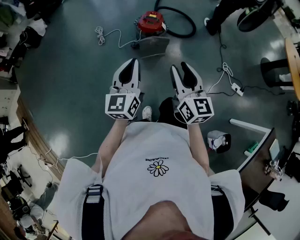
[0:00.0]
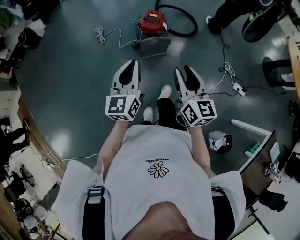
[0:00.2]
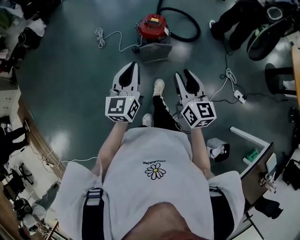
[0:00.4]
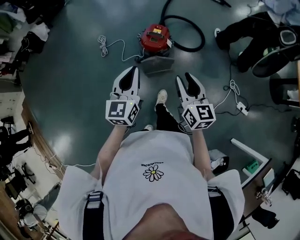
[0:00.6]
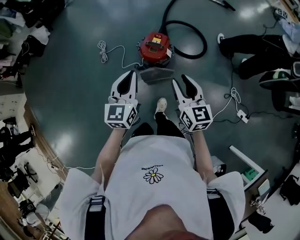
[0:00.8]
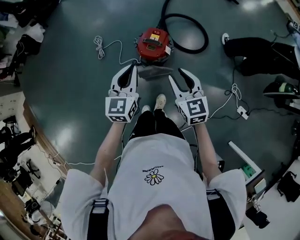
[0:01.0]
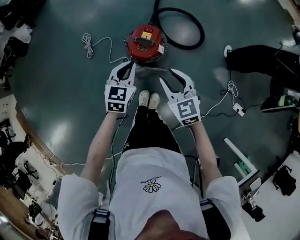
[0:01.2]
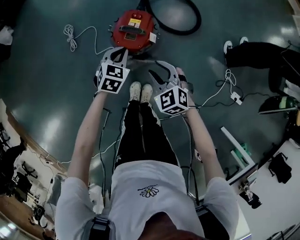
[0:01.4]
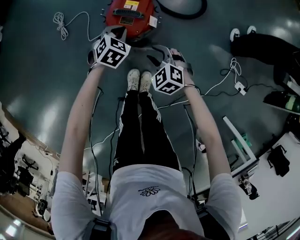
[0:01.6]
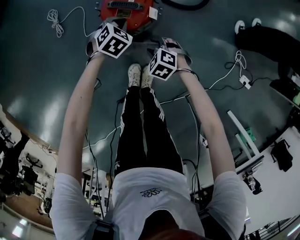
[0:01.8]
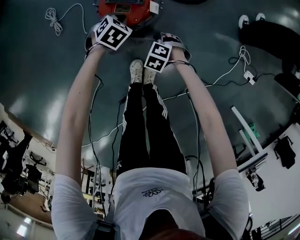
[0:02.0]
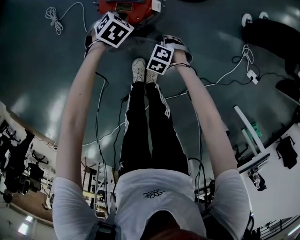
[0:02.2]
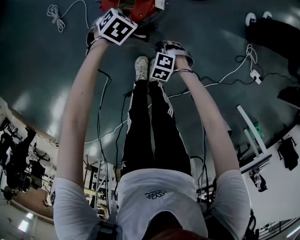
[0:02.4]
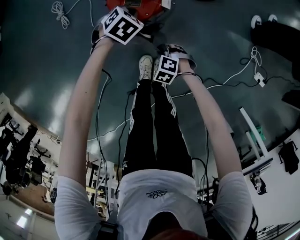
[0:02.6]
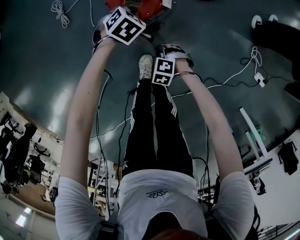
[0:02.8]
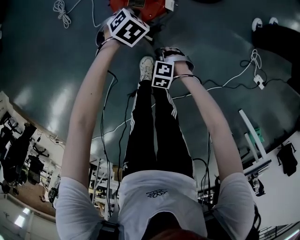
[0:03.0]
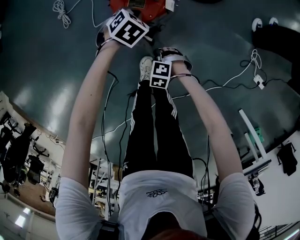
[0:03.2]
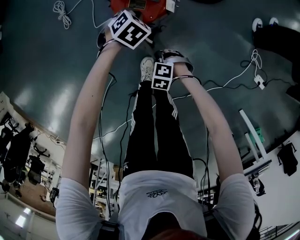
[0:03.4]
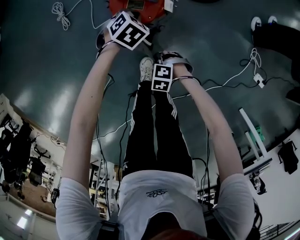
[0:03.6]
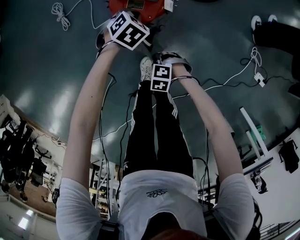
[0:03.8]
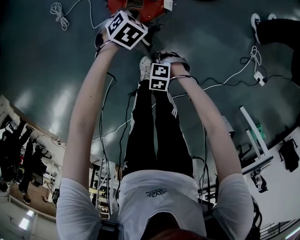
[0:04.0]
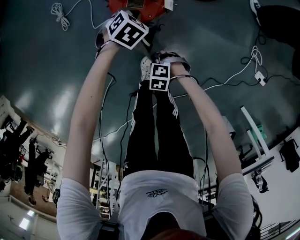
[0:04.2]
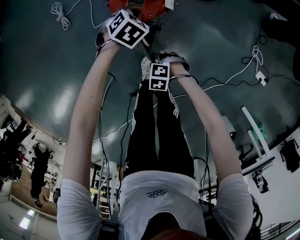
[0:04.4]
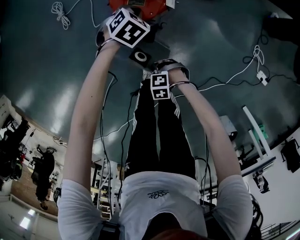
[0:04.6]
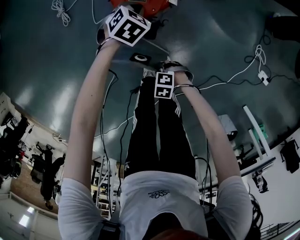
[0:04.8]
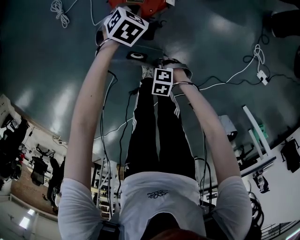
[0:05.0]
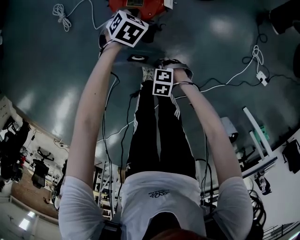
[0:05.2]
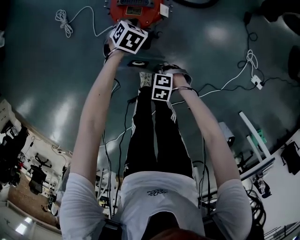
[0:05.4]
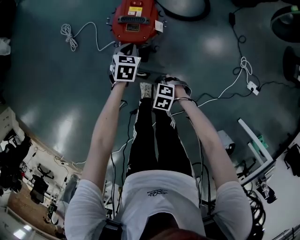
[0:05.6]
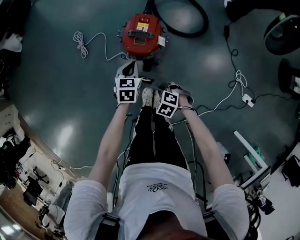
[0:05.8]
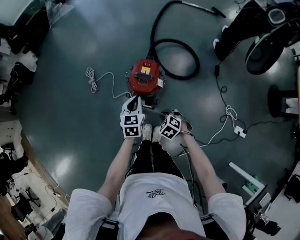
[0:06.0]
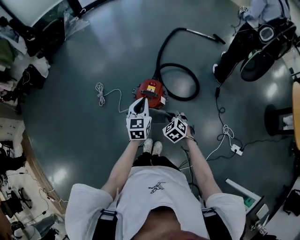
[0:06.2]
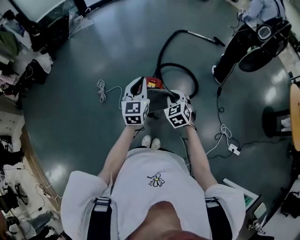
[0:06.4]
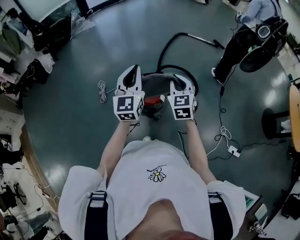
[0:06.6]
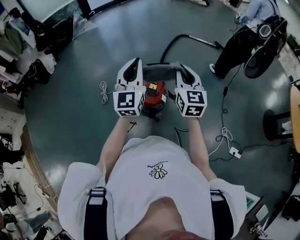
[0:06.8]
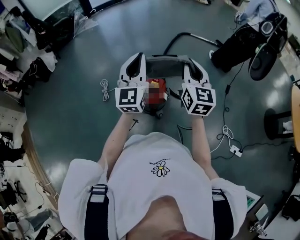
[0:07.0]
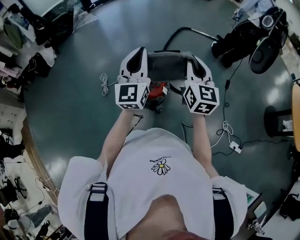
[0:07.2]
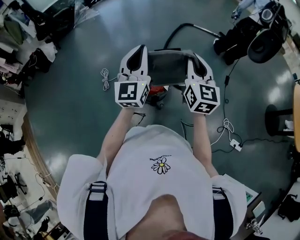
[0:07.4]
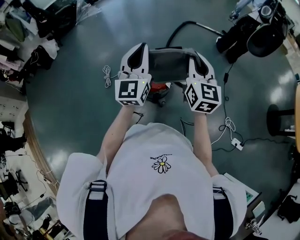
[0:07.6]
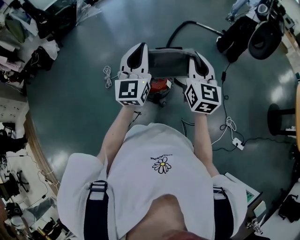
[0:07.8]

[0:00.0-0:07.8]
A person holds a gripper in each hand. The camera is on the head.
0:00.0 to 0:01.6: The two grippers travel together, forward, about 50 cm. Both grippers move downward, about 50 cm. The left gripper angles its fingers downward, by approximately 50 degrees. Meanwhile the right gripper points its fingers approximately 50 degrees further downward.
0:01.6 to 0:03.2: The right gripper travels downward by roughly 15 cm, rotates about 30 degrees, and closes its fingers; the left gripper moves downward, approximately 10 cm.
0:03.2 to 0:04.6: The right gripper changes place by some 10 cm.
0:04.6 to 0:06.2: The two grippers go roughly 40 cm upward. The right gripper swivels some 50 degrees. Meanwhile the left gripper tips its fingers upward by about 50 degrees.
0:06.2 to 0:07.8: Both grippers move upward, about 30 cm. The right gripper tilts its fingers about 50 degrees upward. Meanwhile the left gripper points its fingers approximately 30 degrees further upward.

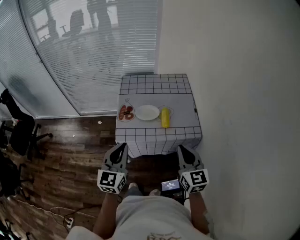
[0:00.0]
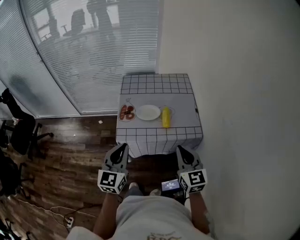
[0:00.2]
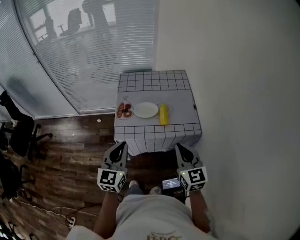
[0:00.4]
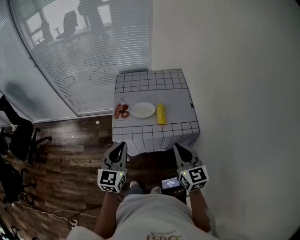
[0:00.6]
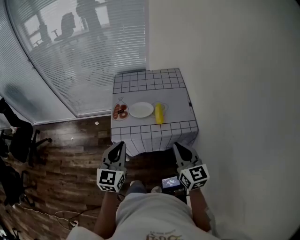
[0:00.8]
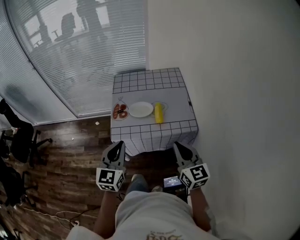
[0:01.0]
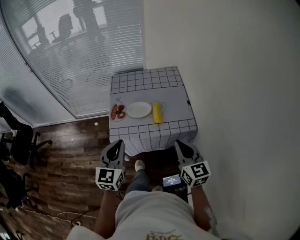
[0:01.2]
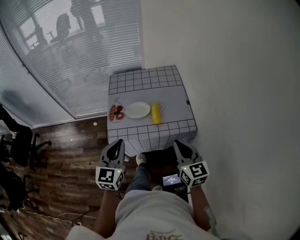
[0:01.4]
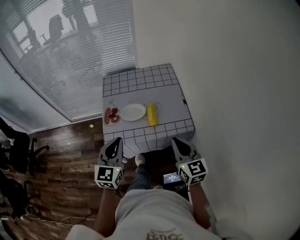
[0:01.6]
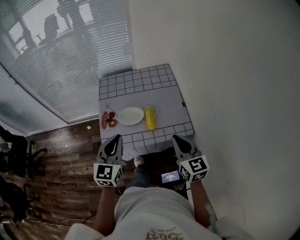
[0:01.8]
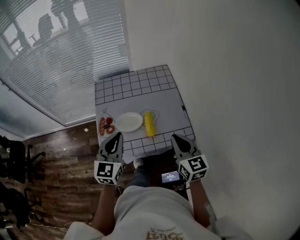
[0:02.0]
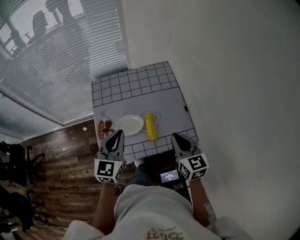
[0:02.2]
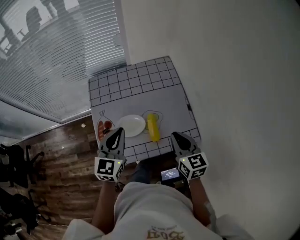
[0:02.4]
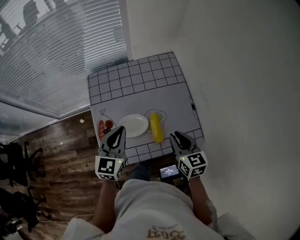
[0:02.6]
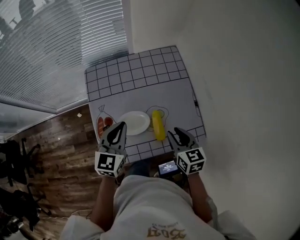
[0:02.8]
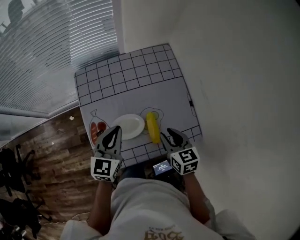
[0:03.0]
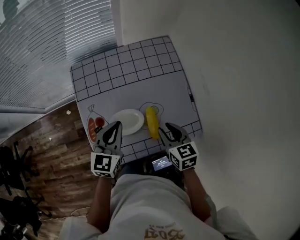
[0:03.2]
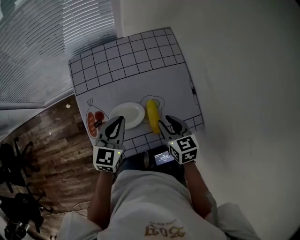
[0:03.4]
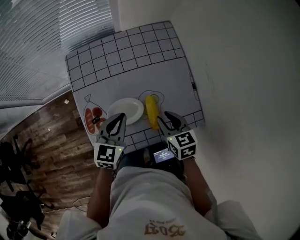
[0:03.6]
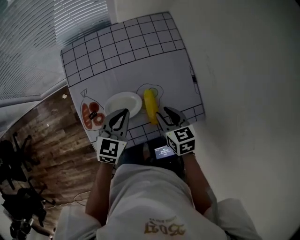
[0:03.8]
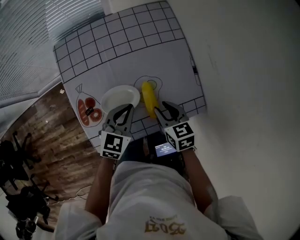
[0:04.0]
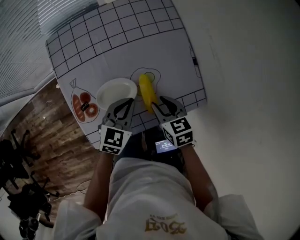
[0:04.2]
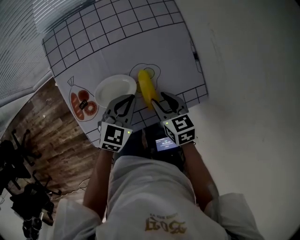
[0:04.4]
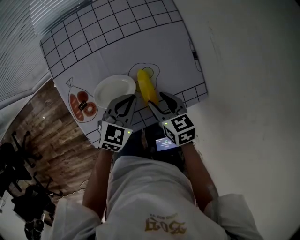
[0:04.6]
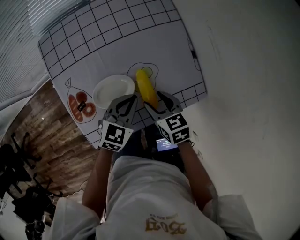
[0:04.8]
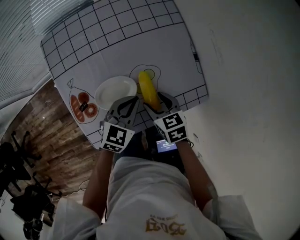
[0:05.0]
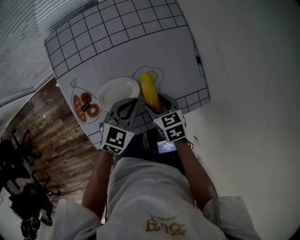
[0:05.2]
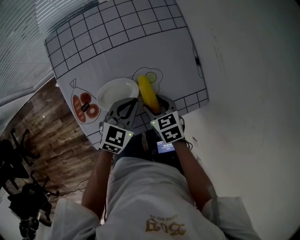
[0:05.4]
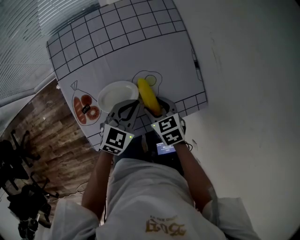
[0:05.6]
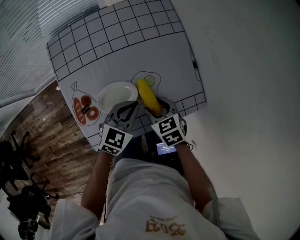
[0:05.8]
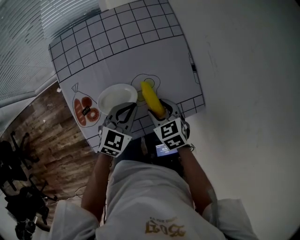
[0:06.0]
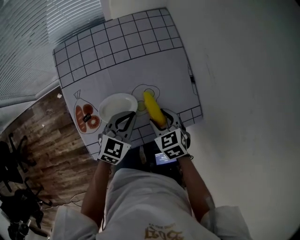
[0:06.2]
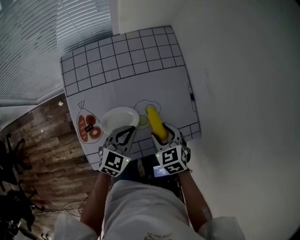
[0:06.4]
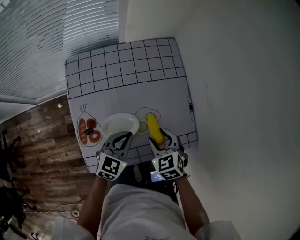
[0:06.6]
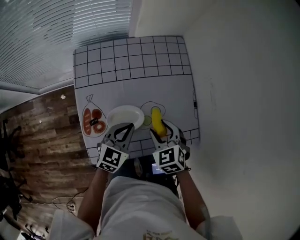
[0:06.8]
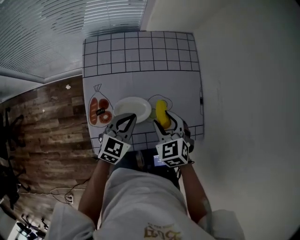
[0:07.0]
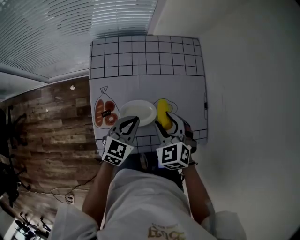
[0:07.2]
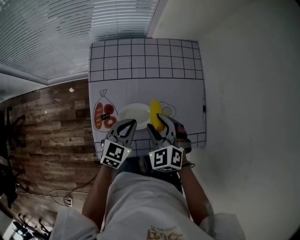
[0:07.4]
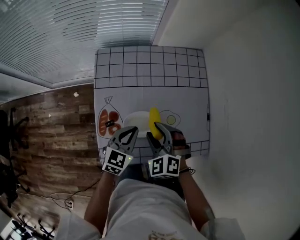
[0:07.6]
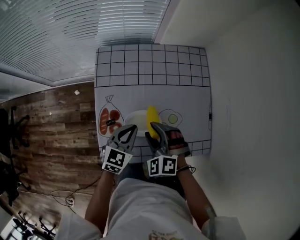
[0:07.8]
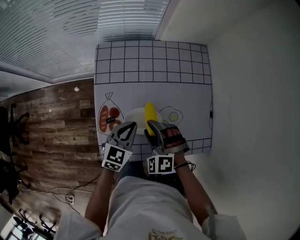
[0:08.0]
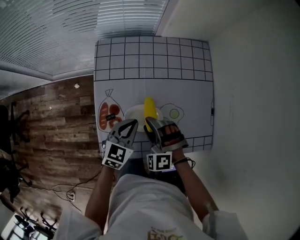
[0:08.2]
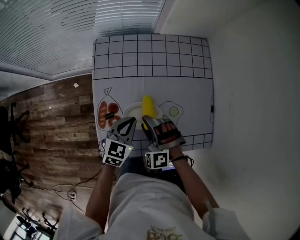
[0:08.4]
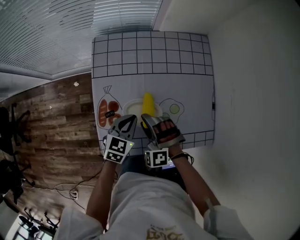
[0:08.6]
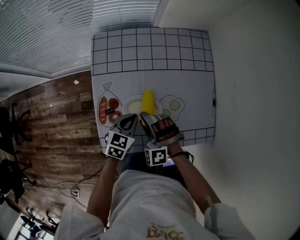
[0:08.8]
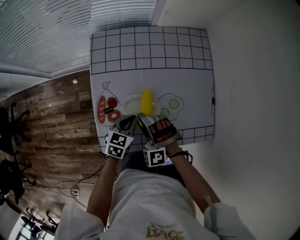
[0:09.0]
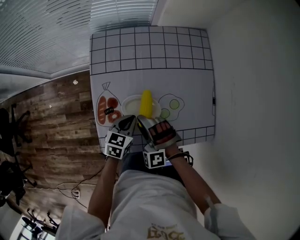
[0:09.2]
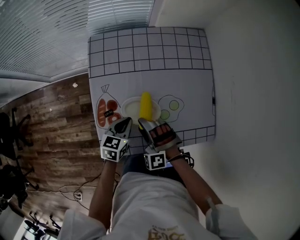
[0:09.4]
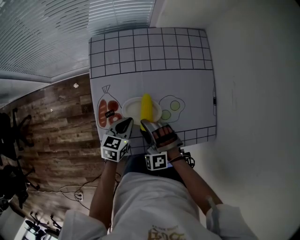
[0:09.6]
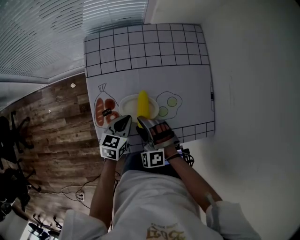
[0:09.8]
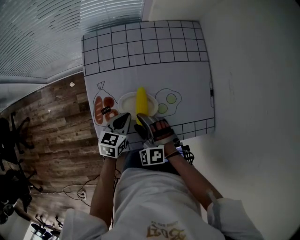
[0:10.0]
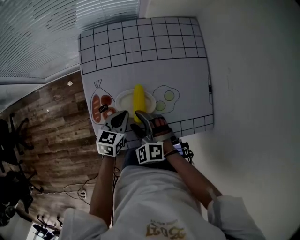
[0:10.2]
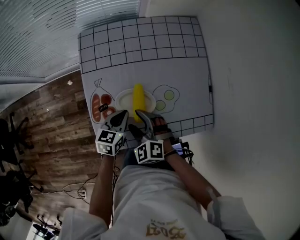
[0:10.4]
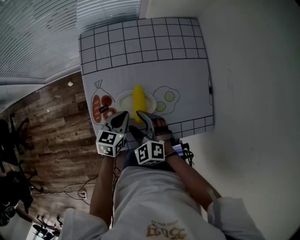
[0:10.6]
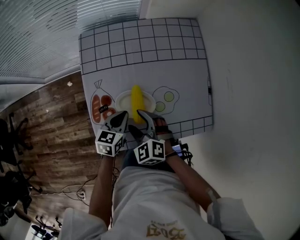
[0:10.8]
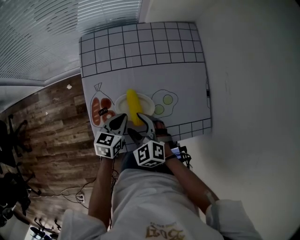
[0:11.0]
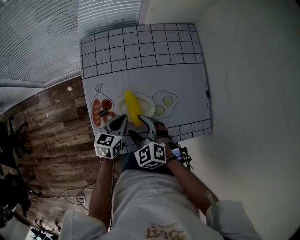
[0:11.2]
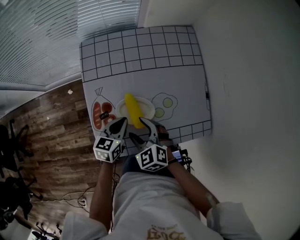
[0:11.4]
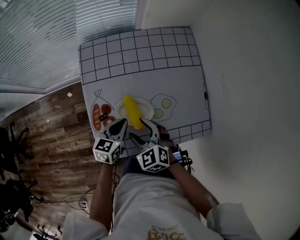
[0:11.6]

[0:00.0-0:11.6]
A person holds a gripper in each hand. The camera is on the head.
0:00.0 to 0:01.4: The left gripper ends up some 5 cm from where it was.
0:01.4 to 0:02.8: The left gripper moves forward, approximately 30 cm; the right gripper goes approximately 25 cm forward and downward, turns by about 20 degrees, and opens its fingers.
0:02.8 to 0:04.4: The left gripper travels downward and to the right by approximately 15 cm, and turns by roughly 30 degrees, while the right gripper goes roughly 10 cm downward.
0:04.4 to 0:05.8: The grippers make only small movements.
0:05.8 to 0:07.2: The left gripper is displaced to the left by approximately 10 cm; the right gripper is displaced upward and to the left by about 10 cm, and turns by roughly 40 degrees.
0:07.2 to 0:08.8: The left gripper travels downward by about 10 cm; the right gripper heads to the left and downward, covering approximately 10 cm, and twists approximately 40 degrees counterclockwise, seen from behind.
0:08.8 to 0:10.2: The right gripper rotates about 30 degrees.
0:10.2 to 0:11.6: The right gripper rotates roughly 20 degrees.

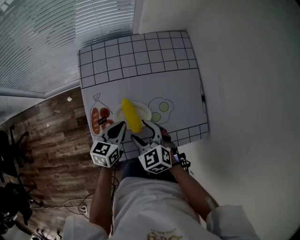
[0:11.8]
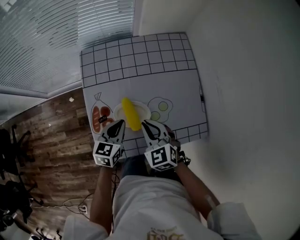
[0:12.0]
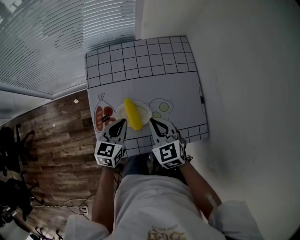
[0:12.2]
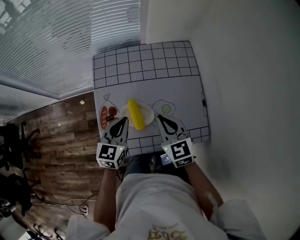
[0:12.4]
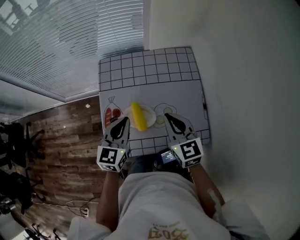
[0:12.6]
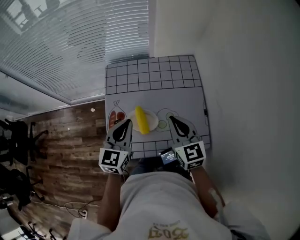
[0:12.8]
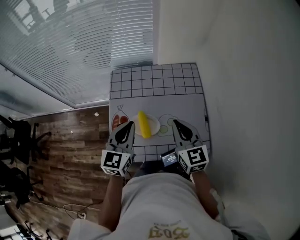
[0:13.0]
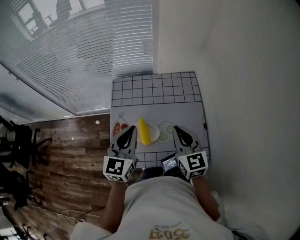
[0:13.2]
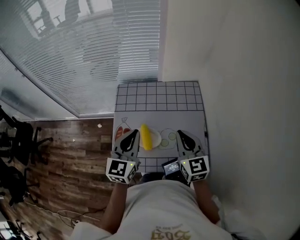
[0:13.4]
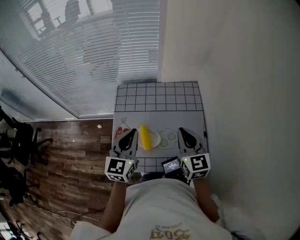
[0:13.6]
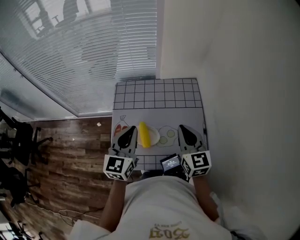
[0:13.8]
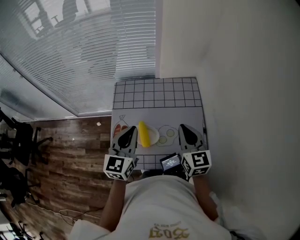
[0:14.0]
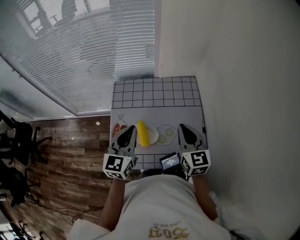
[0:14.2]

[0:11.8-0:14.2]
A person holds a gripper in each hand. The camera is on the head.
0:11.8 to 0:13.0: The right gripper is displaced upward and to the right by some 20 cm, tilts its fingers some 30 degrees upward, and closes up. Meanwhile the left gripper moves upward, roughly 20 cm, and rotates roughly 30 degrees.
0:13.0 to 0:14.2: The grippers move only a little.

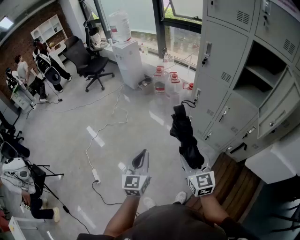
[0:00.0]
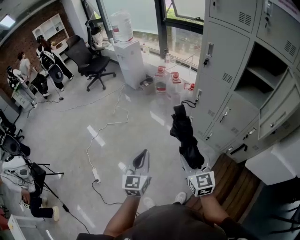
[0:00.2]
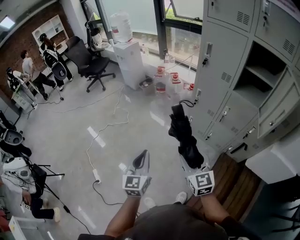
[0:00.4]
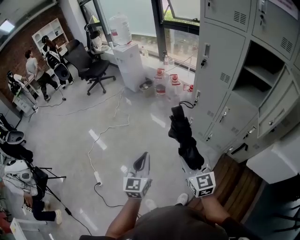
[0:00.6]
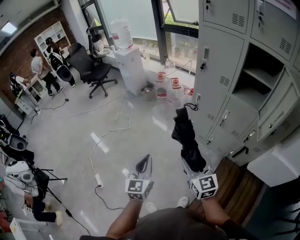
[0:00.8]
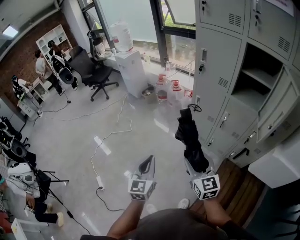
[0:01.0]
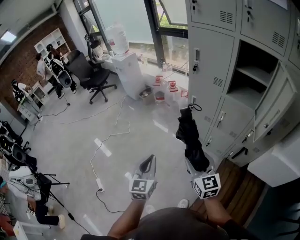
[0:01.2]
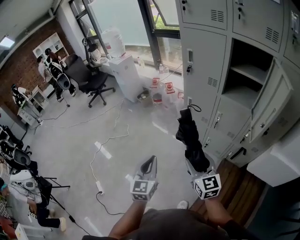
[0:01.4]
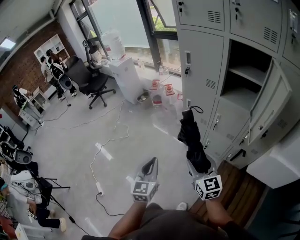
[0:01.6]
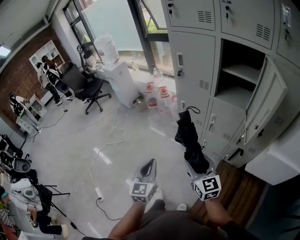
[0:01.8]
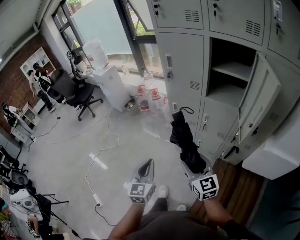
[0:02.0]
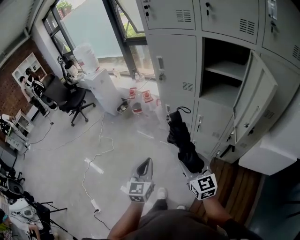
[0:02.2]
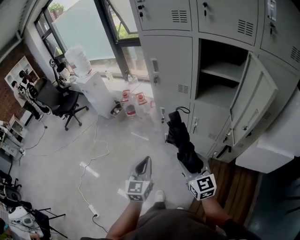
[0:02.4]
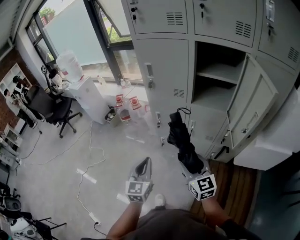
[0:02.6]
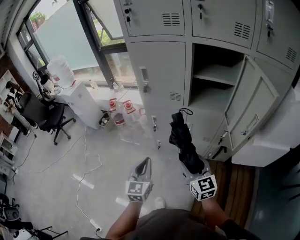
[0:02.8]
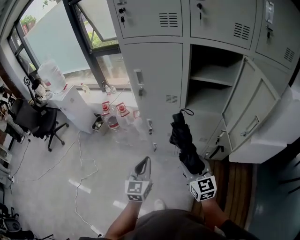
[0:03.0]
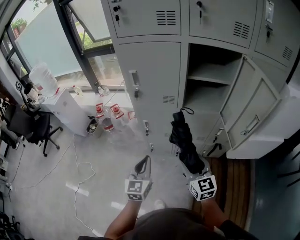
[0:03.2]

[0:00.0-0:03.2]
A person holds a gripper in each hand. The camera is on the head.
0:00.0 to 0:01.6: Both grippers move to the right, about 15 cm.
0:01.6 to 0:03.2: The right gripper moves about 15 cm, and turns by about 30 degrees. The left gripper ends up some 25 cm from where it was, and rotates approximately 30 degrees.
